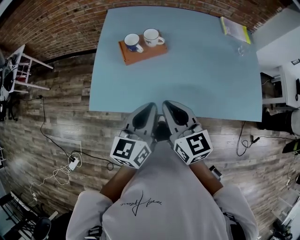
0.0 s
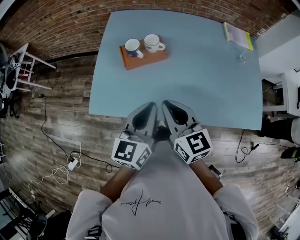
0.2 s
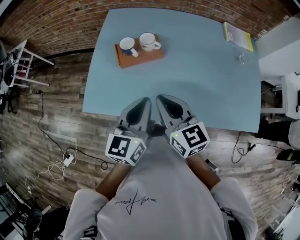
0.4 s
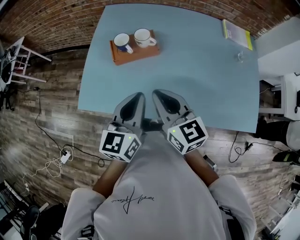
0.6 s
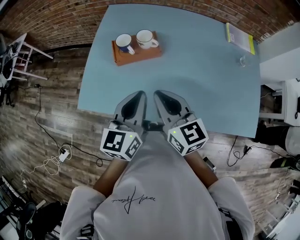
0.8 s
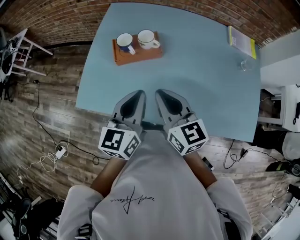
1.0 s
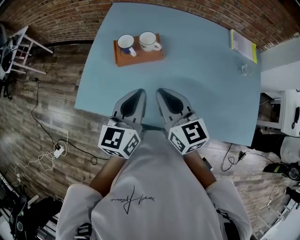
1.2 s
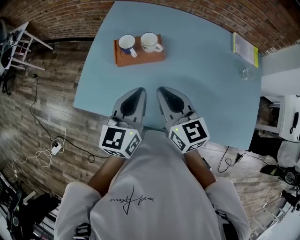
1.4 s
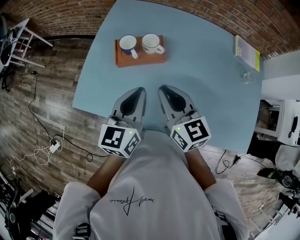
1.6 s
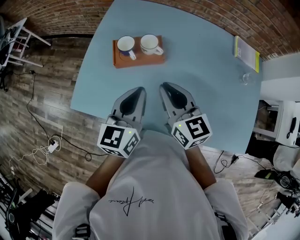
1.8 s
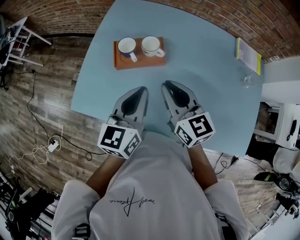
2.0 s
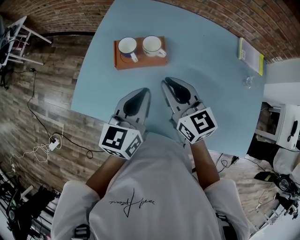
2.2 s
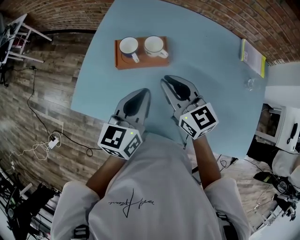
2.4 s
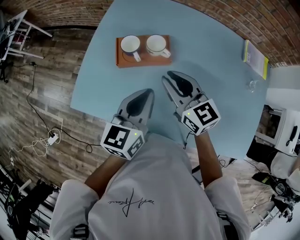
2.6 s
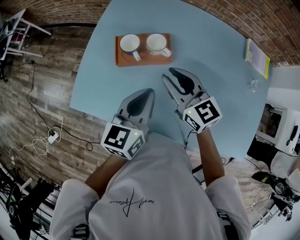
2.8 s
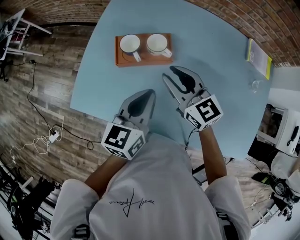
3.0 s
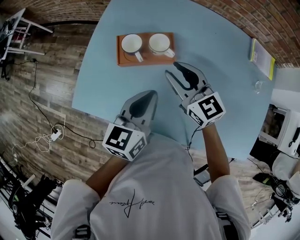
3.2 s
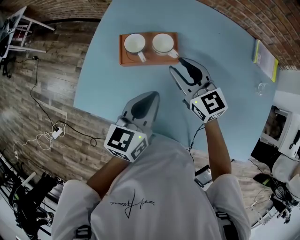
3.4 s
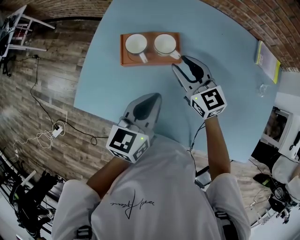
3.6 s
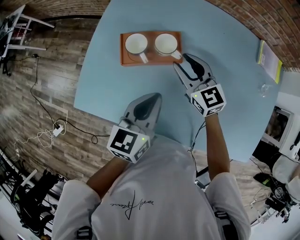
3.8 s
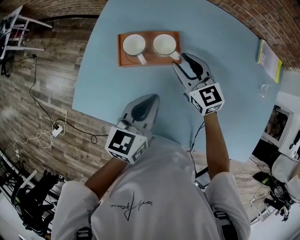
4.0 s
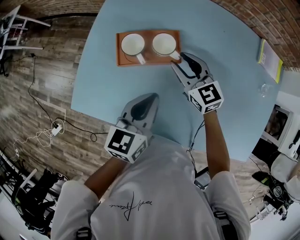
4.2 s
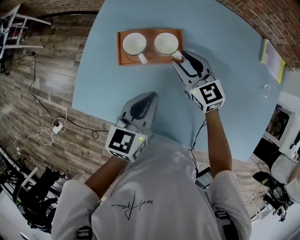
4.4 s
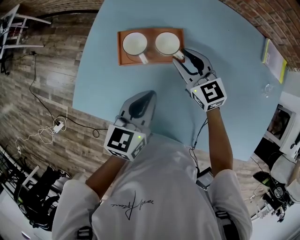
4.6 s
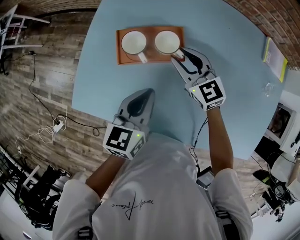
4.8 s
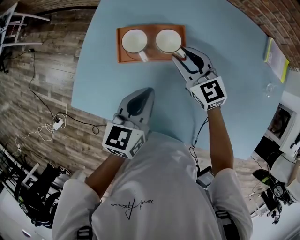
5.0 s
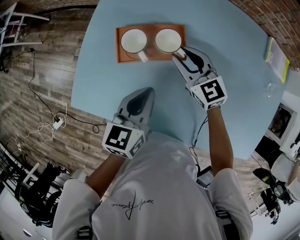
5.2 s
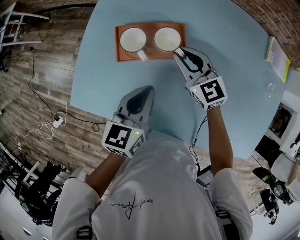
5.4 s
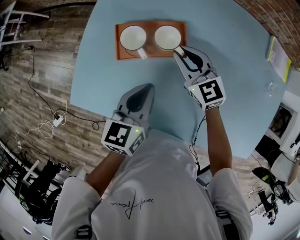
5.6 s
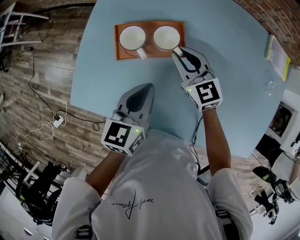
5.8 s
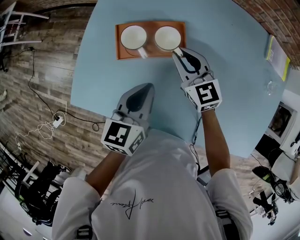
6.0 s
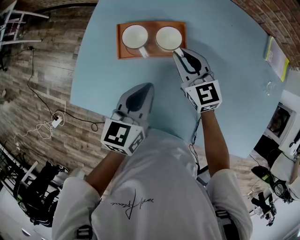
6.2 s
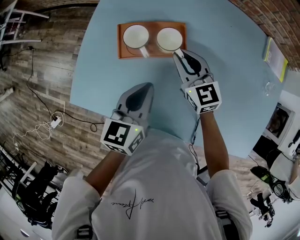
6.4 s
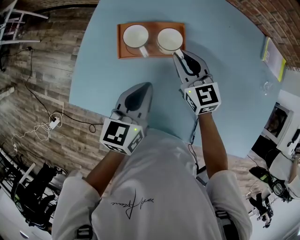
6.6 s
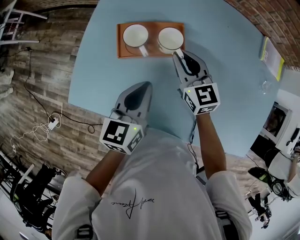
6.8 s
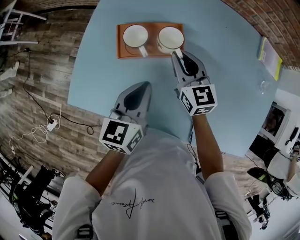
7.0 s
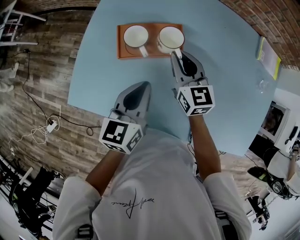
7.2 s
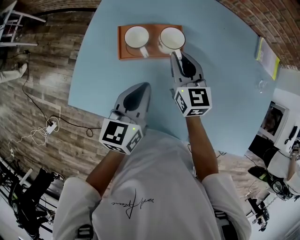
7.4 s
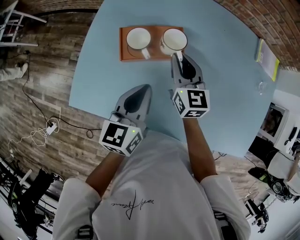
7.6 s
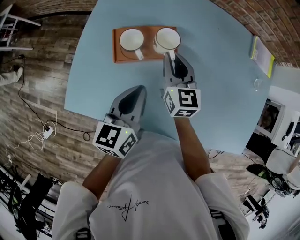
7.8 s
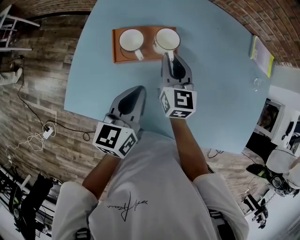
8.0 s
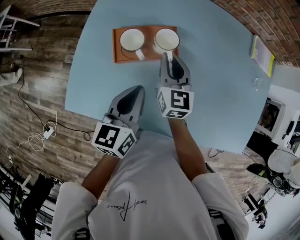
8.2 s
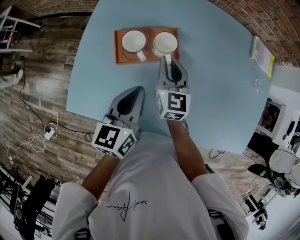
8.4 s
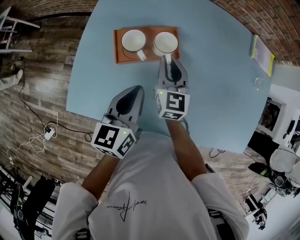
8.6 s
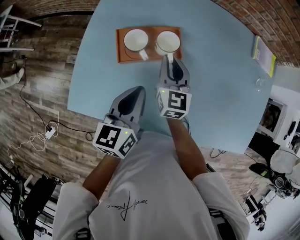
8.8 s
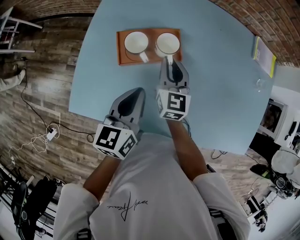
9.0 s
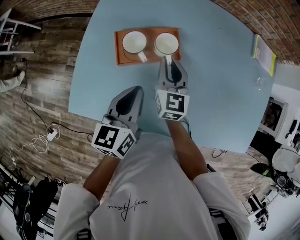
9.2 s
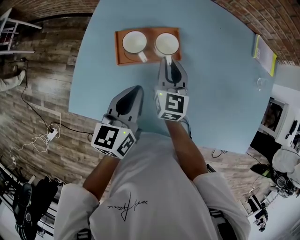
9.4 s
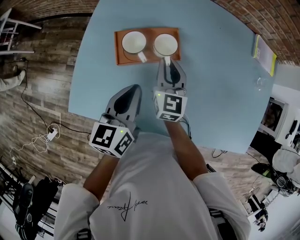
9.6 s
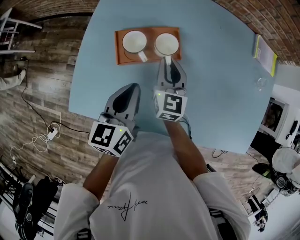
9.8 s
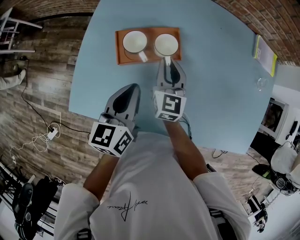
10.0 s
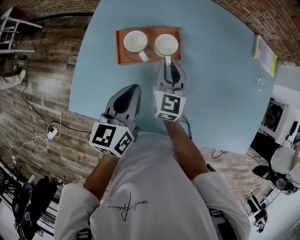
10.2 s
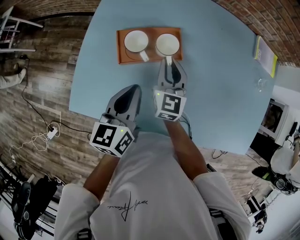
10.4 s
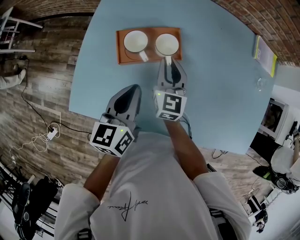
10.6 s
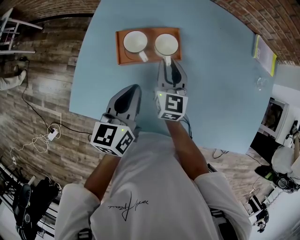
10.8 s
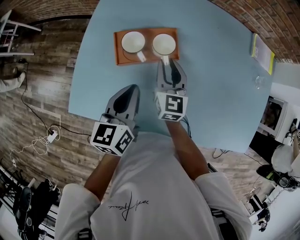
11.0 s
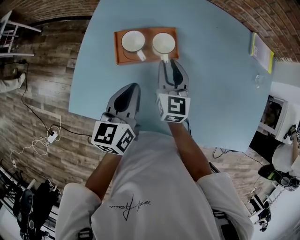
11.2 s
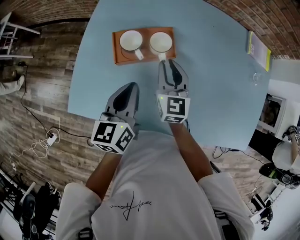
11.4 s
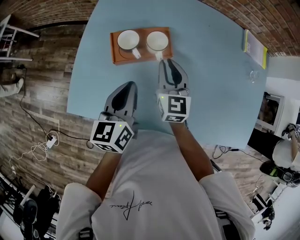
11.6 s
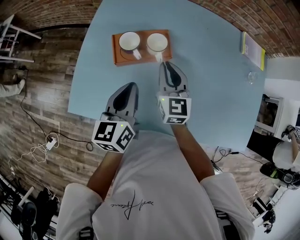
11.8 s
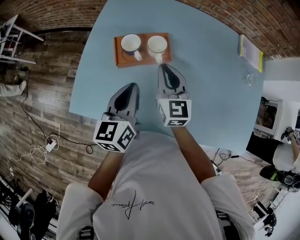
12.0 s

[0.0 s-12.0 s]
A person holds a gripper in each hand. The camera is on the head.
0.0 to 1.6 s: The grippers both shift forward by about 10 cm.
1.6 to 3.0 s: The left gripper changes place by about 5 cm, while the right gripper shifts about 10 cm forward.
3.0 to 4.4 s: The right gripper moves downward and forward, some 10 cm.
4.4 to 6.0 s: The grippers move only a little.
6.0 to 7.6 s: The right gripper rotates approximately 20 degrees.
7.6 to 10.4 s: The grippers move only a little.
10.4 to 12.0 s: The right gripper goes some 5 cm upward.

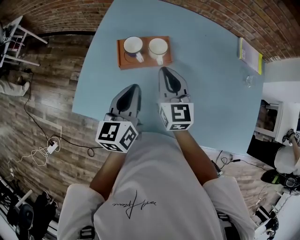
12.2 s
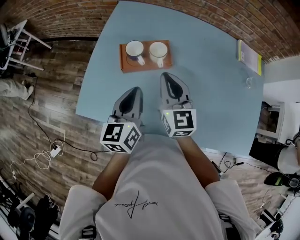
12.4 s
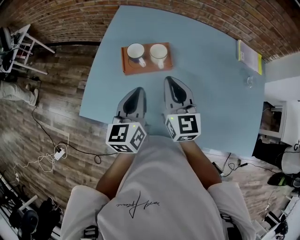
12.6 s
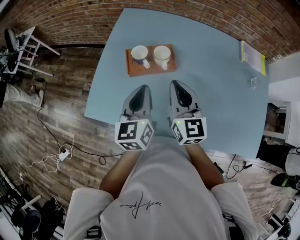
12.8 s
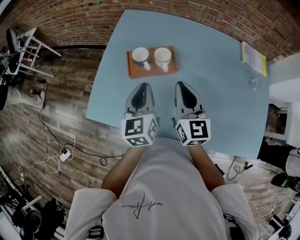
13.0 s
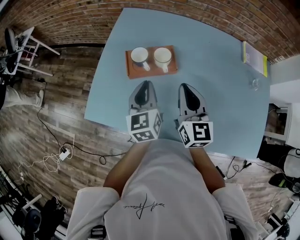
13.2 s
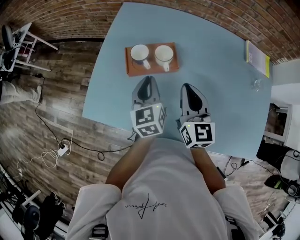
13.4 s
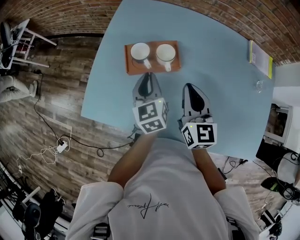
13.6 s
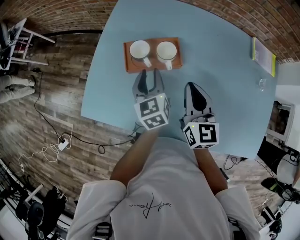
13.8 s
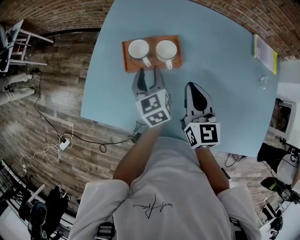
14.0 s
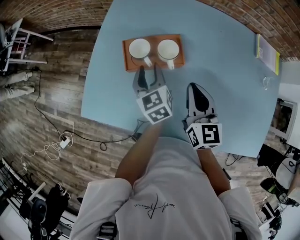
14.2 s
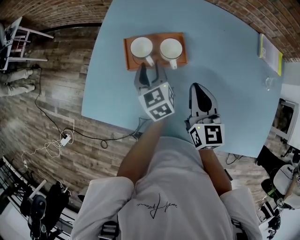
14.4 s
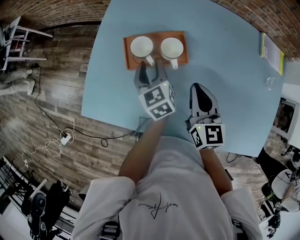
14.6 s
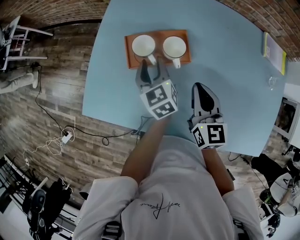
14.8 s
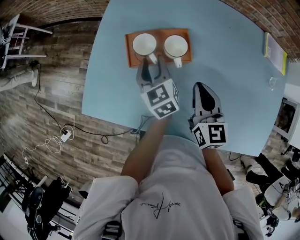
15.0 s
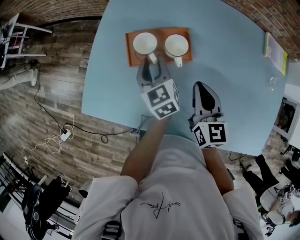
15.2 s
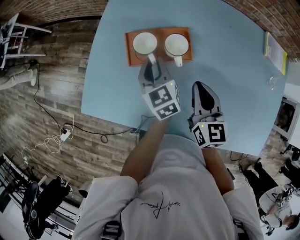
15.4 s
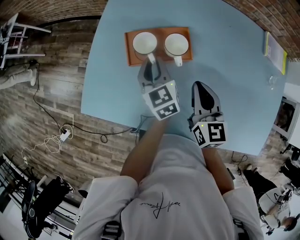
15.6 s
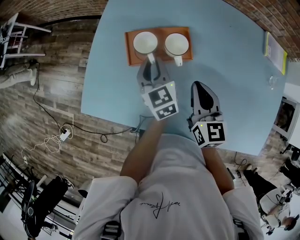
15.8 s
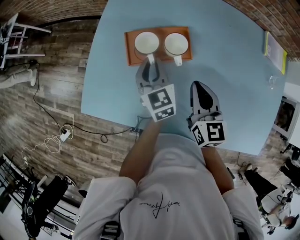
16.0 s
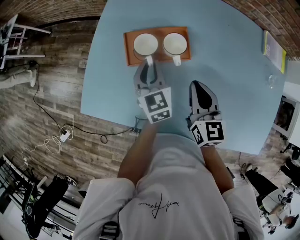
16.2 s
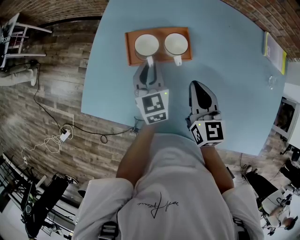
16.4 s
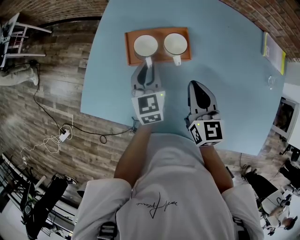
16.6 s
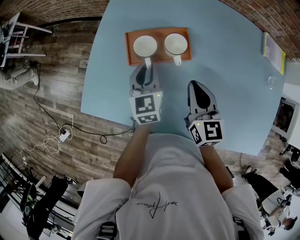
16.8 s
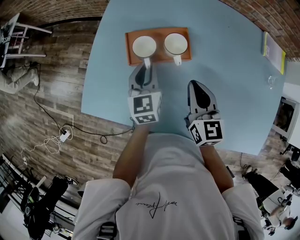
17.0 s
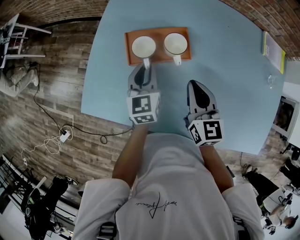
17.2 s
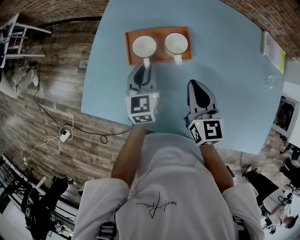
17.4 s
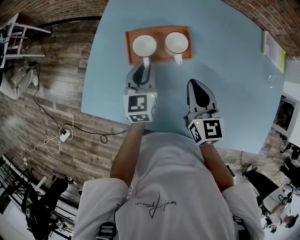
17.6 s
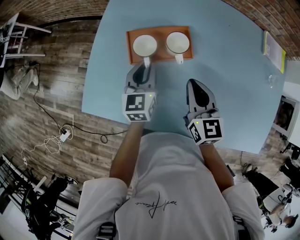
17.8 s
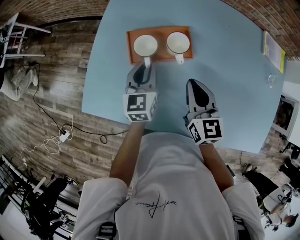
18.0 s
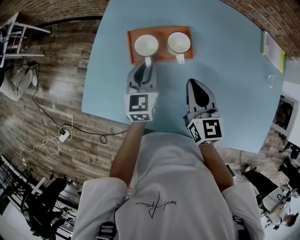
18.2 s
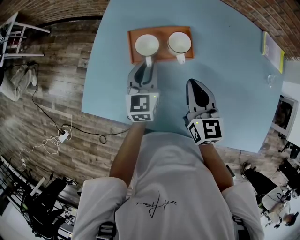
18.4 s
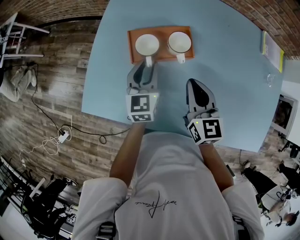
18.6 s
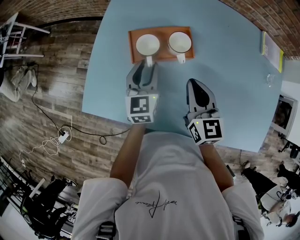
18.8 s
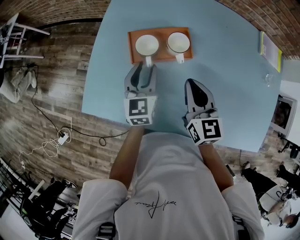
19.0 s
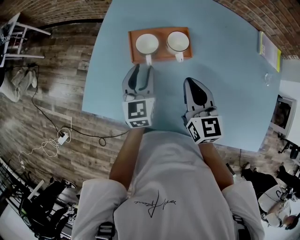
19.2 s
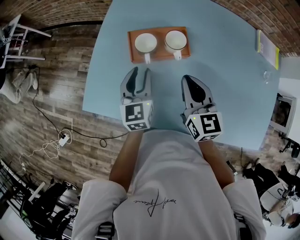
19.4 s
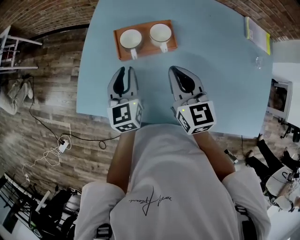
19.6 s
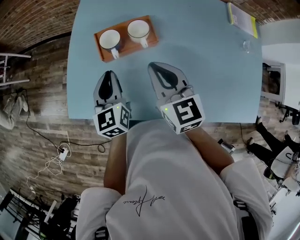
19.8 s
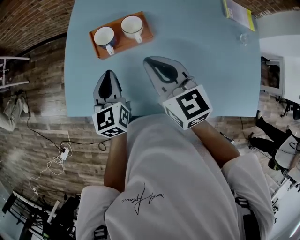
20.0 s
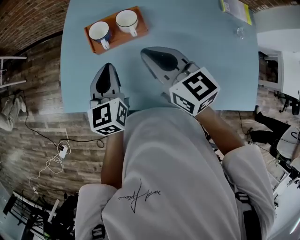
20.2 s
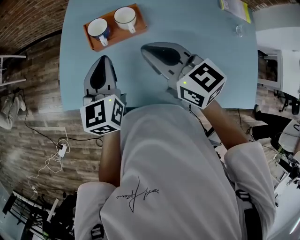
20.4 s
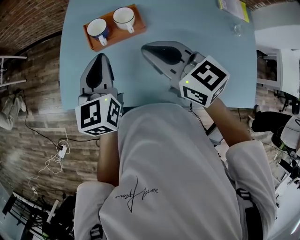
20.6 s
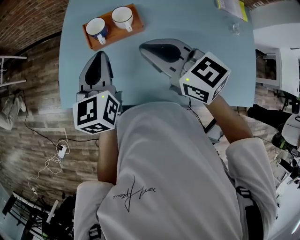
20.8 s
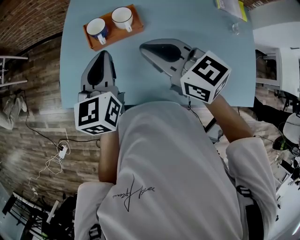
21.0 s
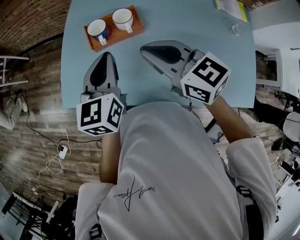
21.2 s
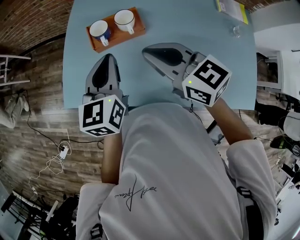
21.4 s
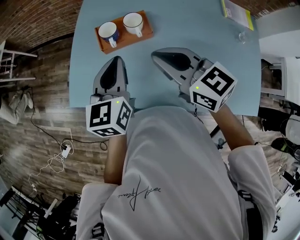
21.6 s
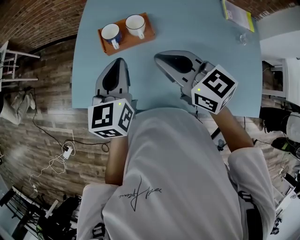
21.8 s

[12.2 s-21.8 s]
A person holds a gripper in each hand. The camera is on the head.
12.2 to 13.8 s: The right gripper moves to the right, some 5 cm; the left gripper goes approximately 10 cm forward and downward, changes its angle by approximately 20 degrees, and opens its fingers.
13.8 to 18.6 s: The grippers make only small movements.
18.6 to 20.2 s: The left gripper heads backward and upward, covering approximately 10 cm, and closes its fingers; the right gripper travels upward by about 10 cm.
20.2 to 21.8 s: The left gripper is displaced upward by about 10 cm. Meanwhile the right gripper shifts by roughly 5 cm.

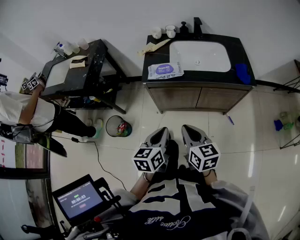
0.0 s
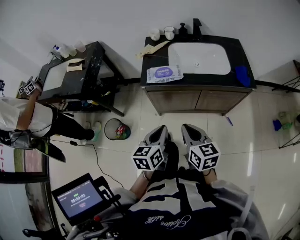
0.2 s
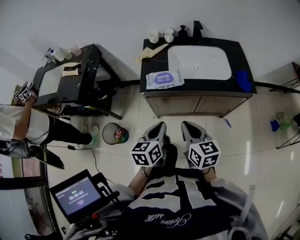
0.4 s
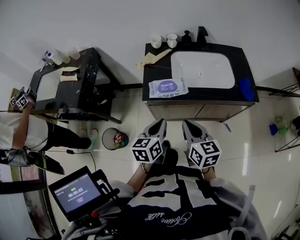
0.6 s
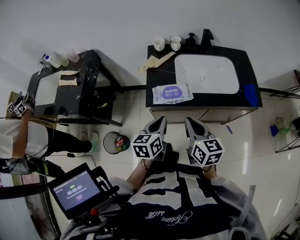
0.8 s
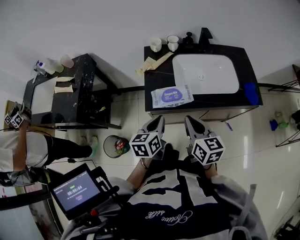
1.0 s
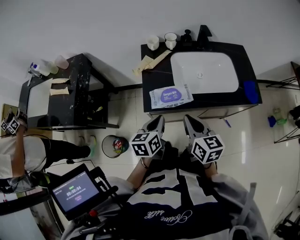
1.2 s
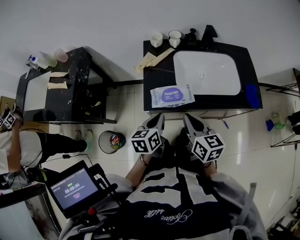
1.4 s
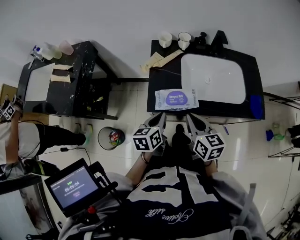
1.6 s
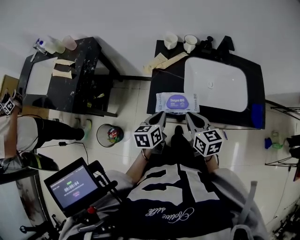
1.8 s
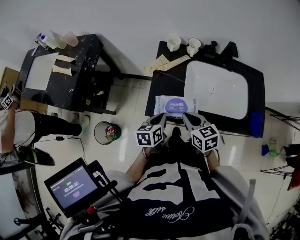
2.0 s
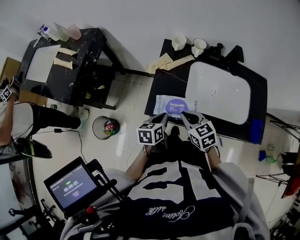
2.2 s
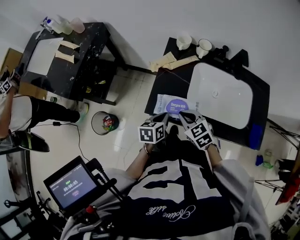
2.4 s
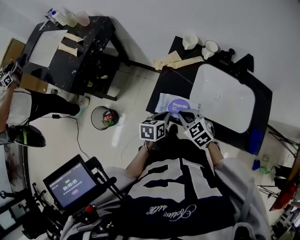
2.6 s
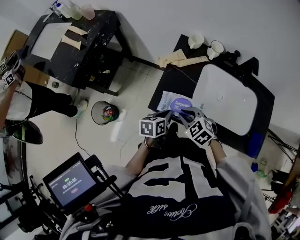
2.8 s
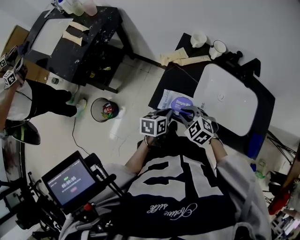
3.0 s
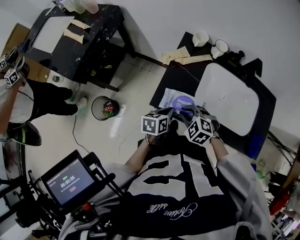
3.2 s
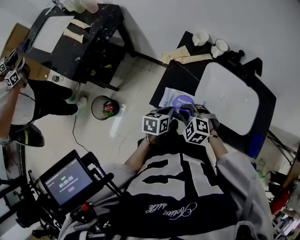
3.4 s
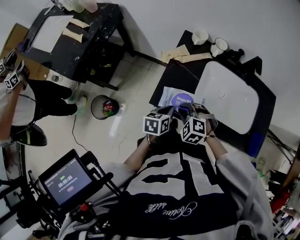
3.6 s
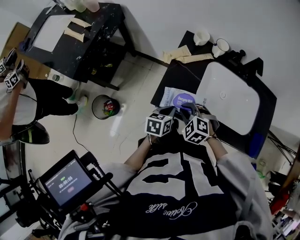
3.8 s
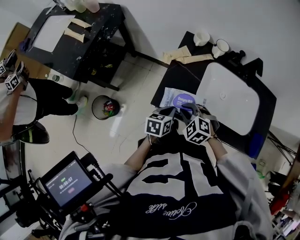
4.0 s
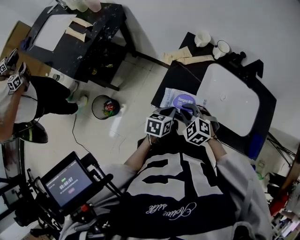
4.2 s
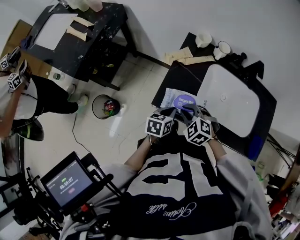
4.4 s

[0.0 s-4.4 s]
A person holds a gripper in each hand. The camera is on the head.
0.0 to 1.4 s: Both grippers move forward, about 25 cm.
1.4 to 3.0 s: The two grippers go some 15 cm downward and forward. The right gripper tilts its fingers about 30 degrees downward.
3.0 to 4.4 s: There are only small adjustments of the grippers.
